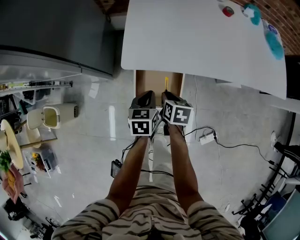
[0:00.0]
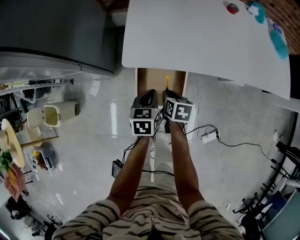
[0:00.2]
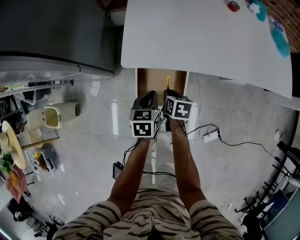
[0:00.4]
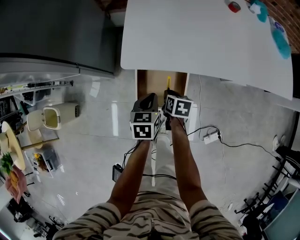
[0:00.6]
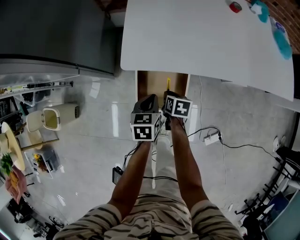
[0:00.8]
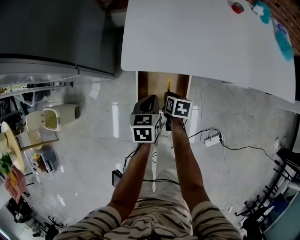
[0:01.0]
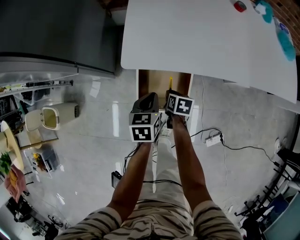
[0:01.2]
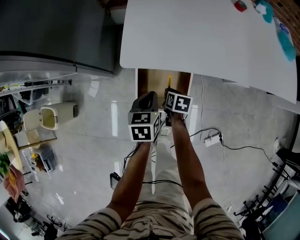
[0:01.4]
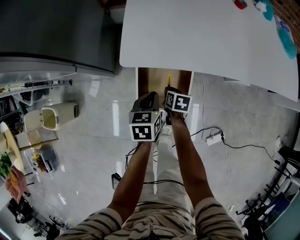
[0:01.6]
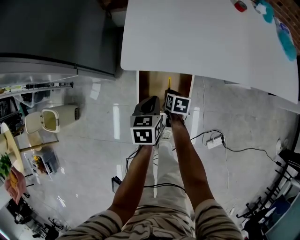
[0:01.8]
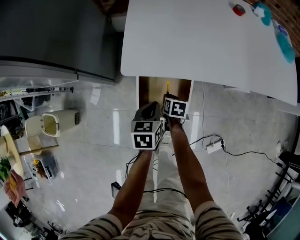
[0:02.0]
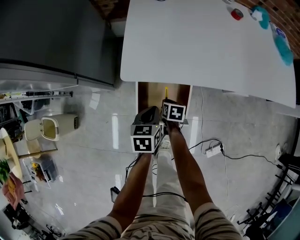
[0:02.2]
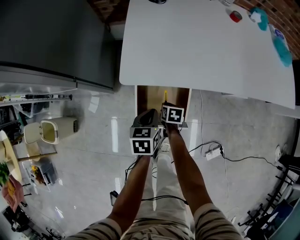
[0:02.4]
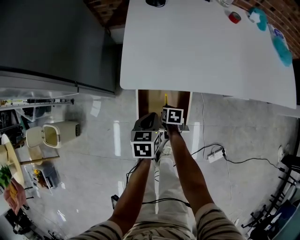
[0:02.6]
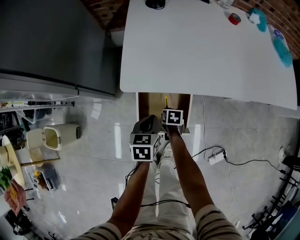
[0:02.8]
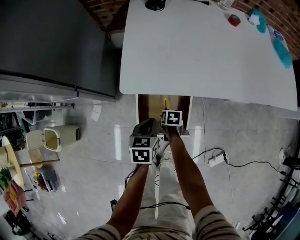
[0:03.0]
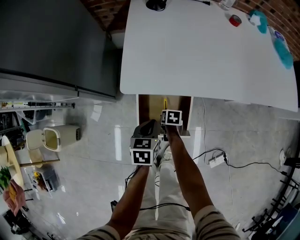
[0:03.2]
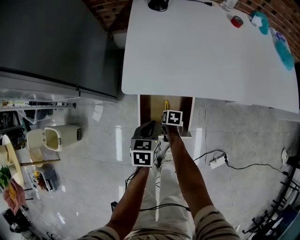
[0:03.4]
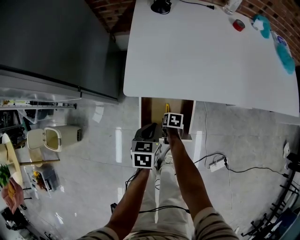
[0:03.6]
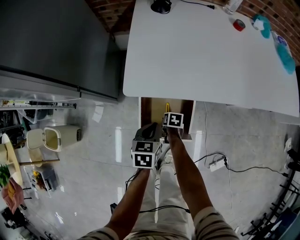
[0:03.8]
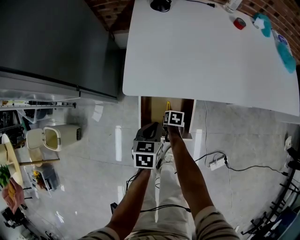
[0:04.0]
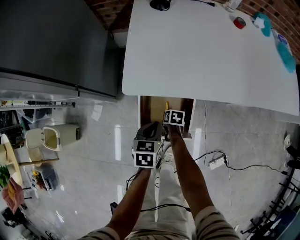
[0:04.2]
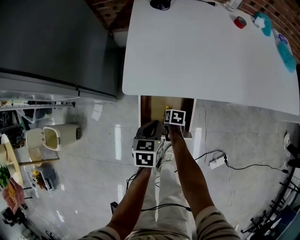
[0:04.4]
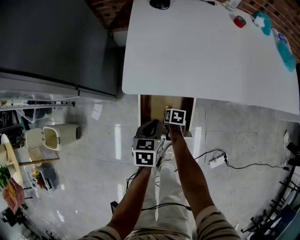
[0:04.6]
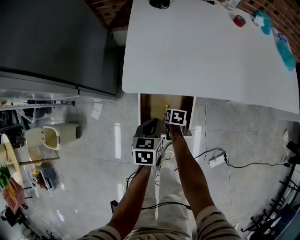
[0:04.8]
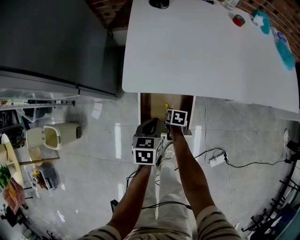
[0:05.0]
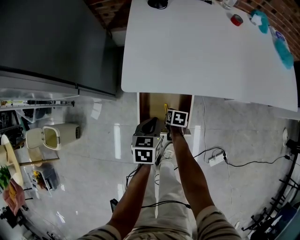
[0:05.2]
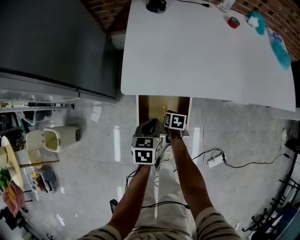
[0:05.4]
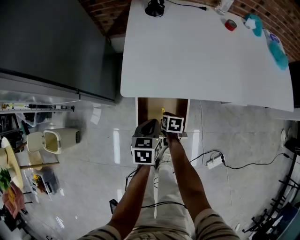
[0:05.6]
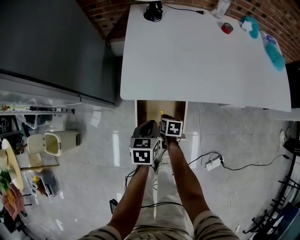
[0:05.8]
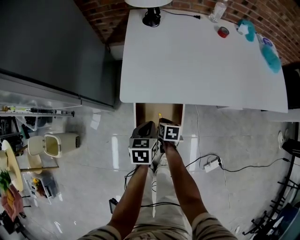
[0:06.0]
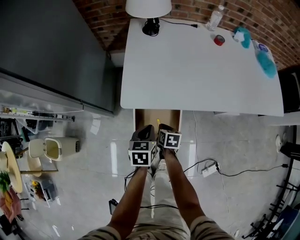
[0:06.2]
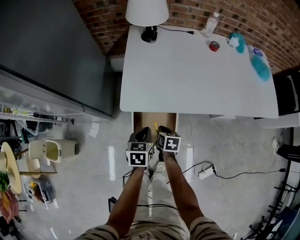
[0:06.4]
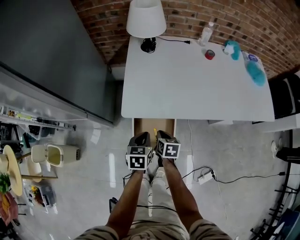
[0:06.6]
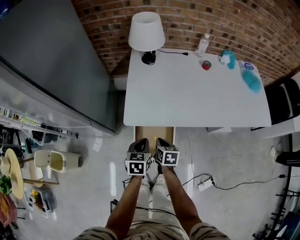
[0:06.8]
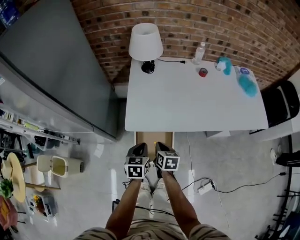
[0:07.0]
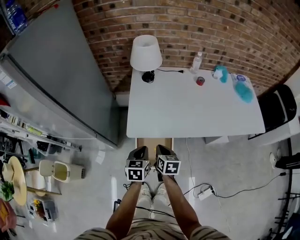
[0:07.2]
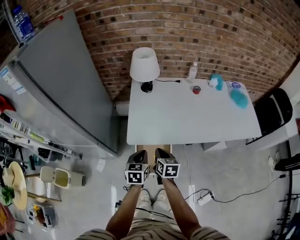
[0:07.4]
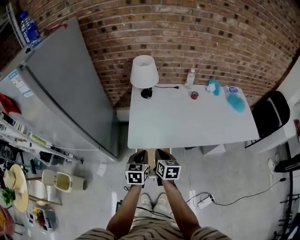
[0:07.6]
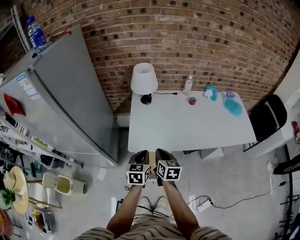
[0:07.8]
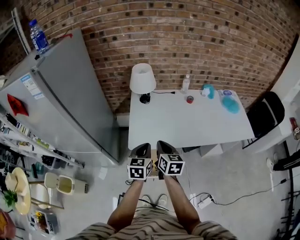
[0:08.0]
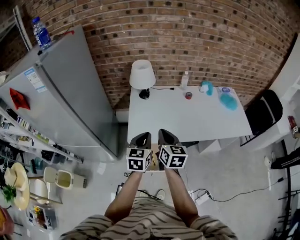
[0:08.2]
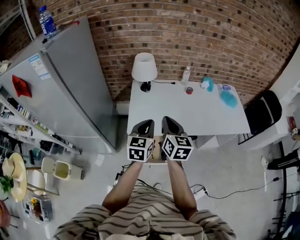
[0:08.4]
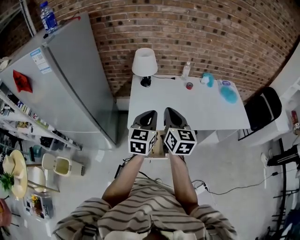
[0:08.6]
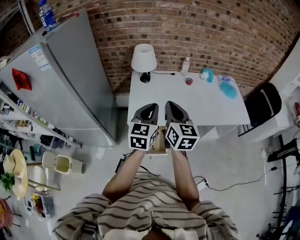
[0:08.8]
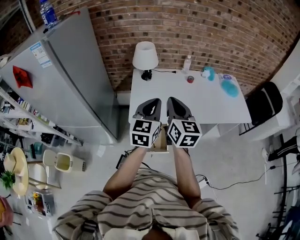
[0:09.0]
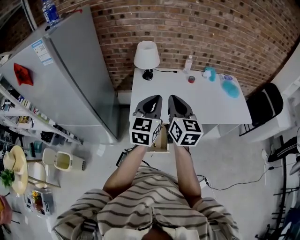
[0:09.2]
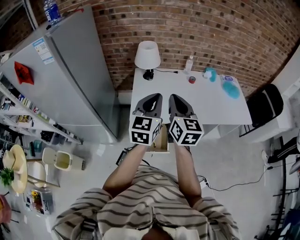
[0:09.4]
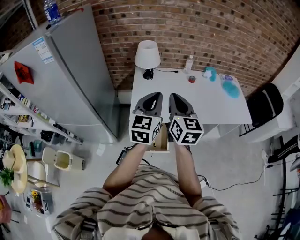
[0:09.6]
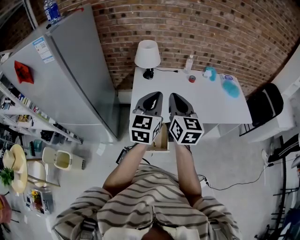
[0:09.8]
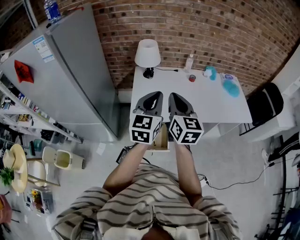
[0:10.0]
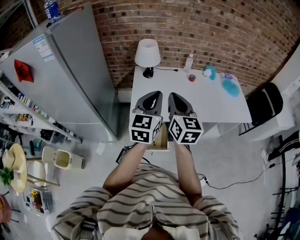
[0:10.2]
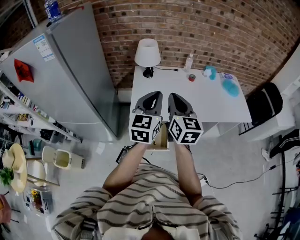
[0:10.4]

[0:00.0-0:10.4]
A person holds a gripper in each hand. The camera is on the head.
0:00.0 to 0:01.4: The right gripper shifts approximately 15 cm downward.
0:01.4 to 0:03.0: The right gripper travels downward by some 10 cm.
0:03.0 to 0:04.4: There are only small adjustments of the grippers.
0:04.4 to 0:06.0: The right gripper is displaced upward by roughly 15 cm; the left gripper shifts some 5 cm upward.
0:06.0 to 0:07.4: The right gripper goes approximately 30 cm upward, and swivels approximately 20 degrees. The left gripper shifts some 20 cm upward.
0:07.4 to 0:09.0: Both grippers move upward, some 30 cm. The right gripper angles its fingers upward, by roughly 30 degrees, while the left gripper swivels roughly 30 degrees.
0:09.0 to 0:10.4: The grippers make only small movements.

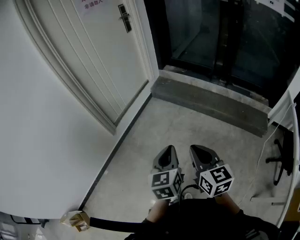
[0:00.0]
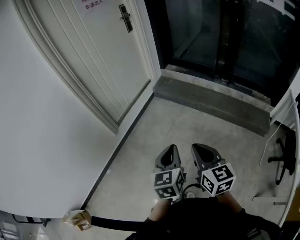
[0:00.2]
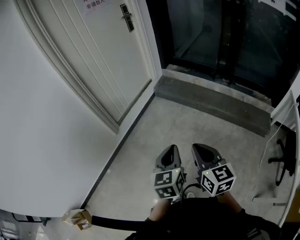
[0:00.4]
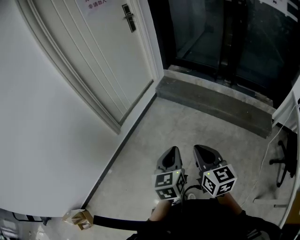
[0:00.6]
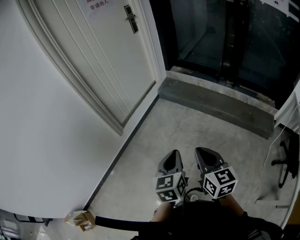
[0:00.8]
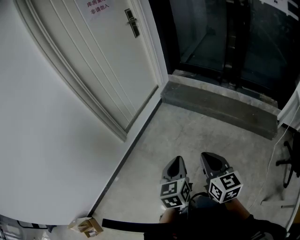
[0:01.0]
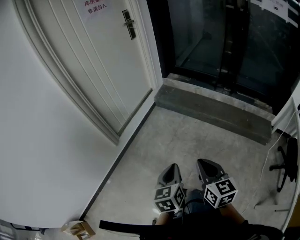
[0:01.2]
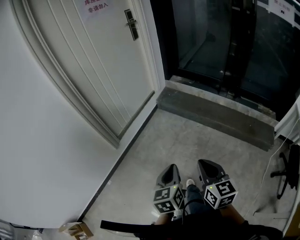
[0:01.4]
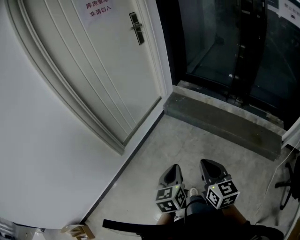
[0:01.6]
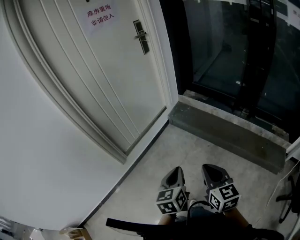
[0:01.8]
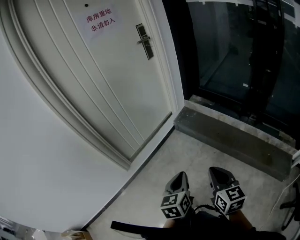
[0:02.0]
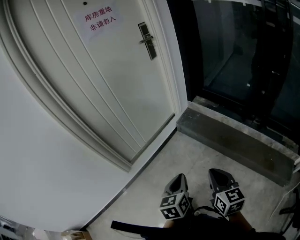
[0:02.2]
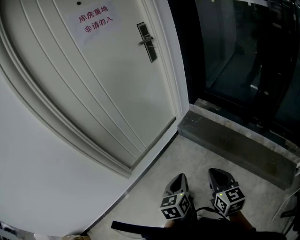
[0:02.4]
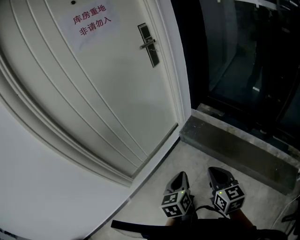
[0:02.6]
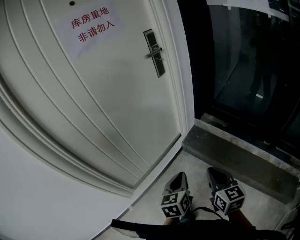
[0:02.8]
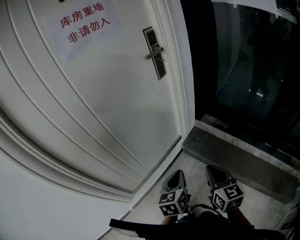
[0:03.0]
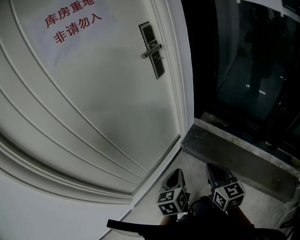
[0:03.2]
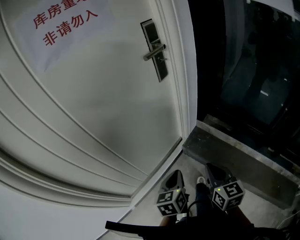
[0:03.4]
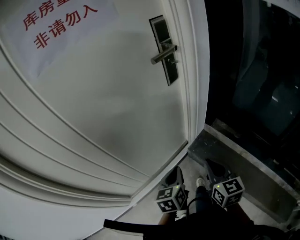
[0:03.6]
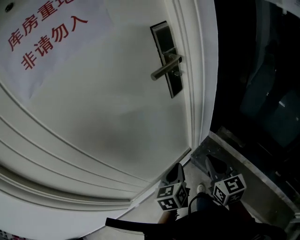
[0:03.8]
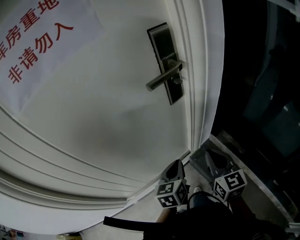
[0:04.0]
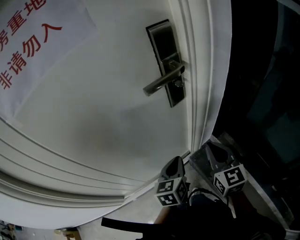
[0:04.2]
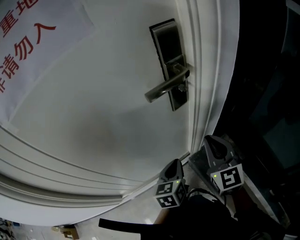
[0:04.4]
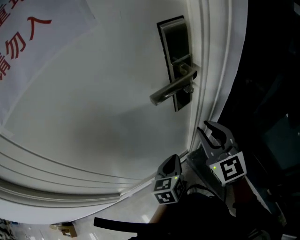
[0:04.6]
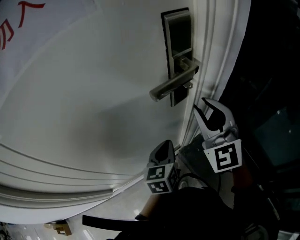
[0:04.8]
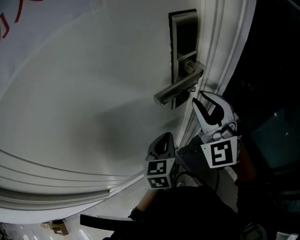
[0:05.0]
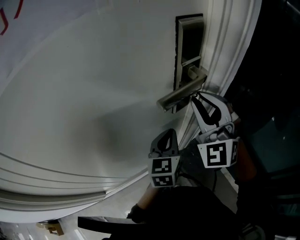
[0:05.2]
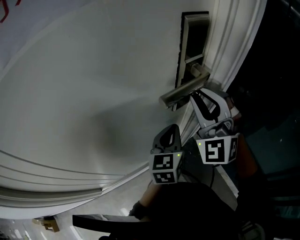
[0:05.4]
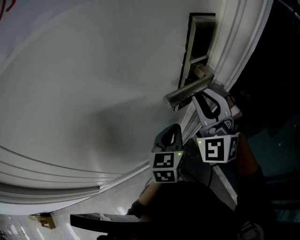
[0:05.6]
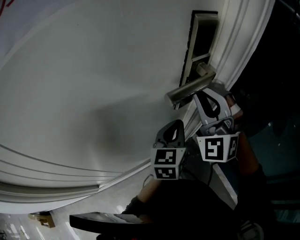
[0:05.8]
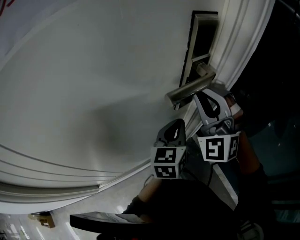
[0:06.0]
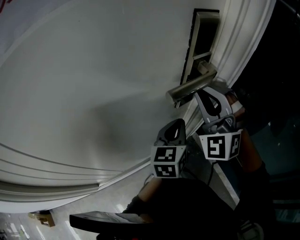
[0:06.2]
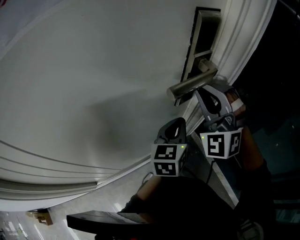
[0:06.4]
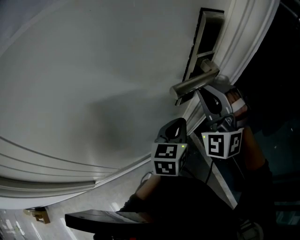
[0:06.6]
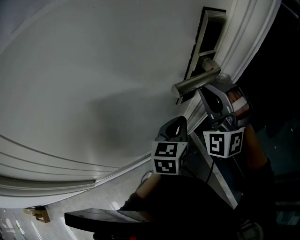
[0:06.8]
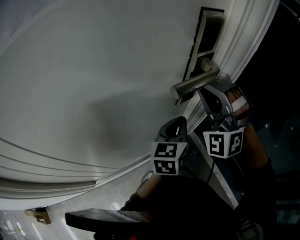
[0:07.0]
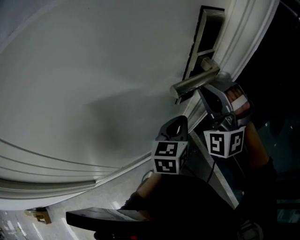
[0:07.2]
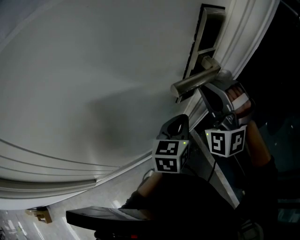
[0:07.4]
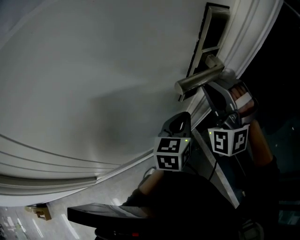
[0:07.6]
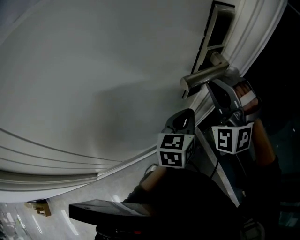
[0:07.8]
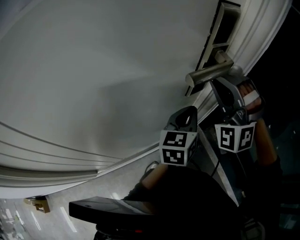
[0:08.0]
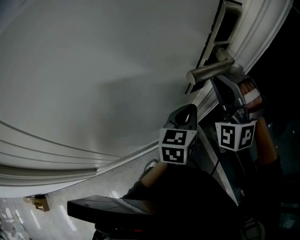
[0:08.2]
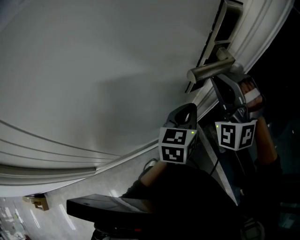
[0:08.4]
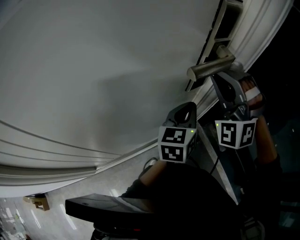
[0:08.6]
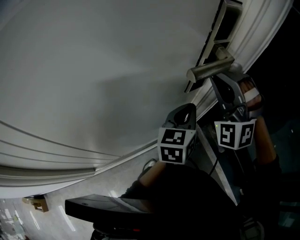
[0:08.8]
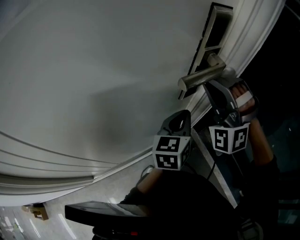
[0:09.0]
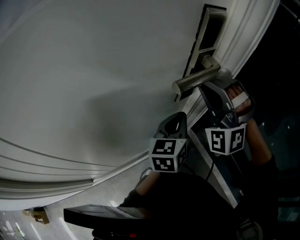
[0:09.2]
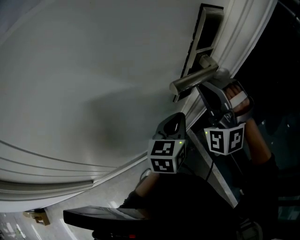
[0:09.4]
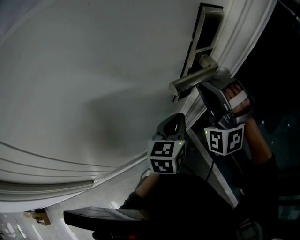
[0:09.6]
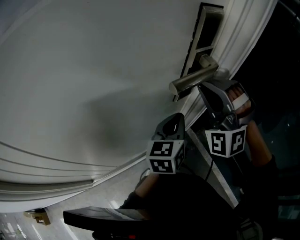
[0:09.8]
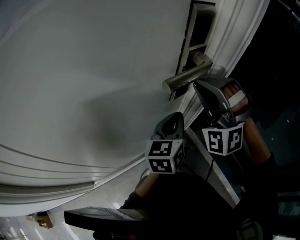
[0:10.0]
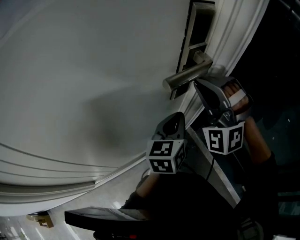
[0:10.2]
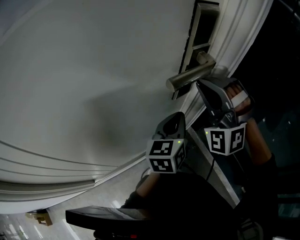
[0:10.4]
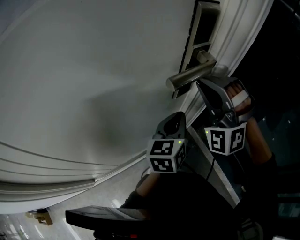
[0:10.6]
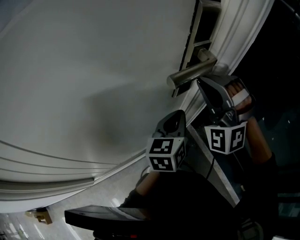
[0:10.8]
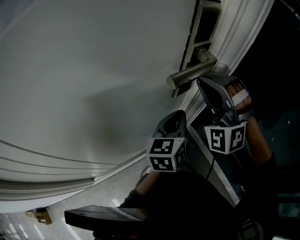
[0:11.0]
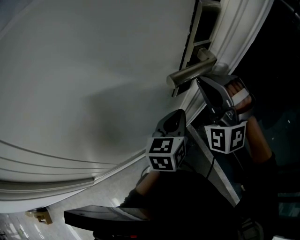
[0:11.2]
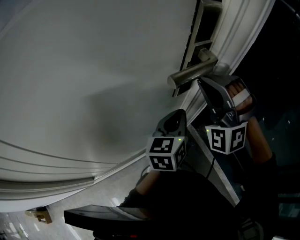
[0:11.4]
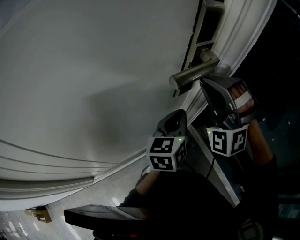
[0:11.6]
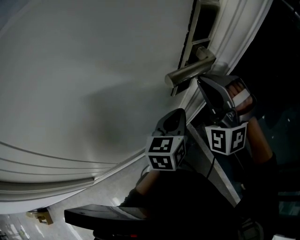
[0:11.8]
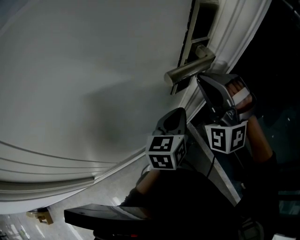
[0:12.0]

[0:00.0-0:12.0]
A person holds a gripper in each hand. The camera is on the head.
0:00.0 to 0:01.6: The left gripper moves approximately 15 cm.
0:01.6 to 0:03.0: The left gripper ends up some 50 cm from where it was.
0:03.0 to 0:04.4: The left gripper changes place by approximately 40 cm.
0:04.4 to 0:06.0: The left gripper moves roughly 15 cm.

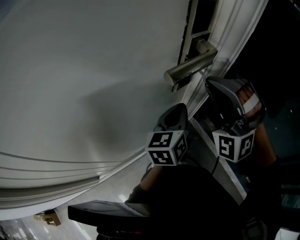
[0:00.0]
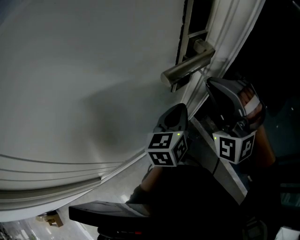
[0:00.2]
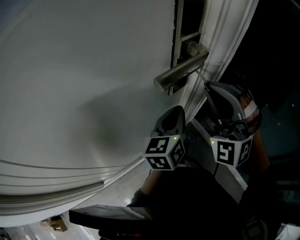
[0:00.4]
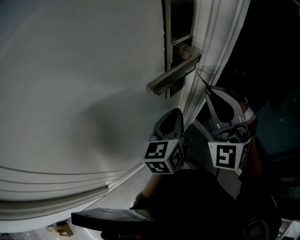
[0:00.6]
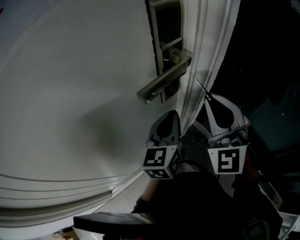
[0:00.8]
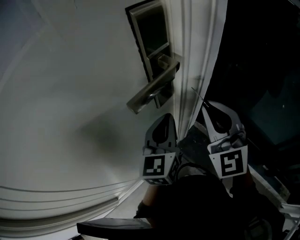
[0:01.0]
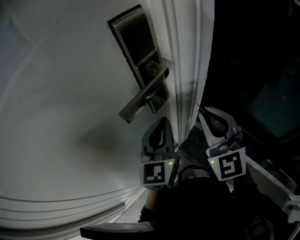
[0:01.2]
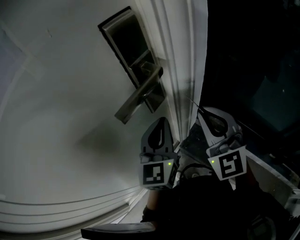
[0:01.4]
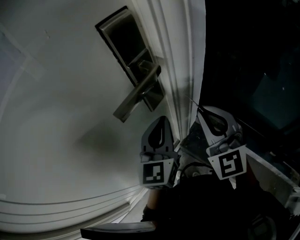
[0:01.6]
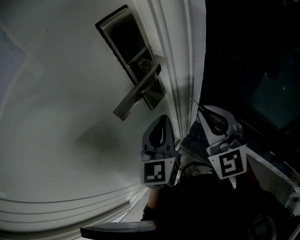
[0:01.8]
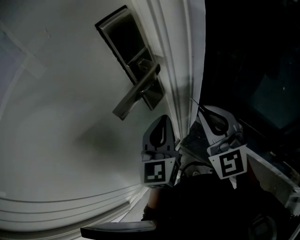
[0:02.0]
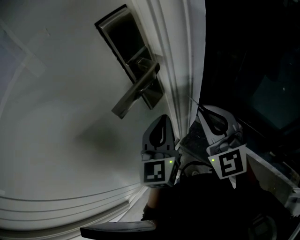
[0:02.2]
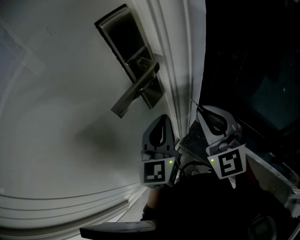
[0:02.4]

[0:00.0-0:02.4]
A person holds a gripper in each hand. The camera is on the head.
0:00.0 to 0:01.2: The left gripper shifts about 5 cm upward, and changes its angle by approximately 30 degrees.
